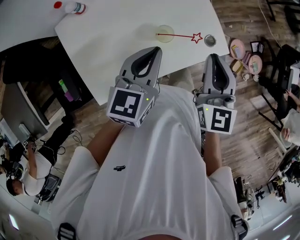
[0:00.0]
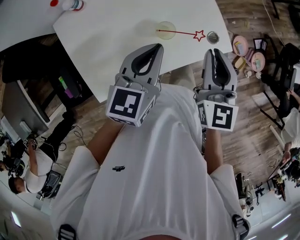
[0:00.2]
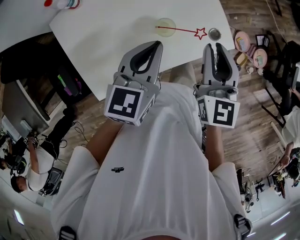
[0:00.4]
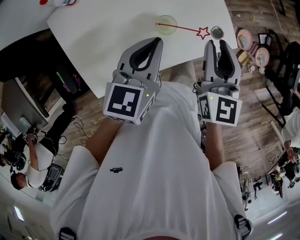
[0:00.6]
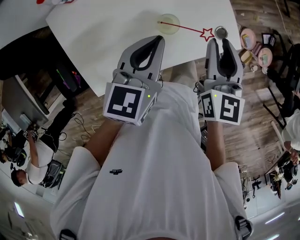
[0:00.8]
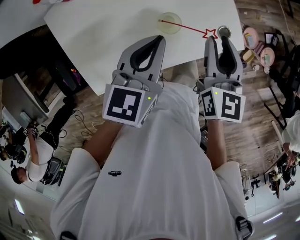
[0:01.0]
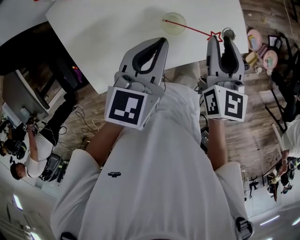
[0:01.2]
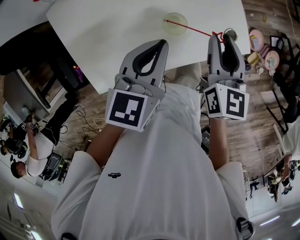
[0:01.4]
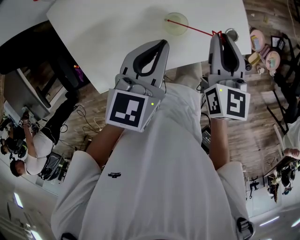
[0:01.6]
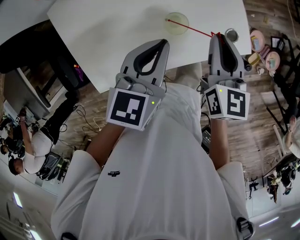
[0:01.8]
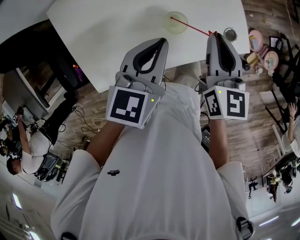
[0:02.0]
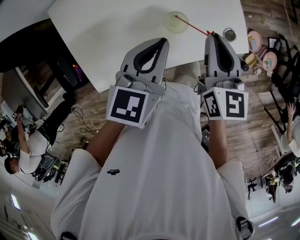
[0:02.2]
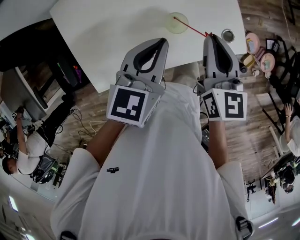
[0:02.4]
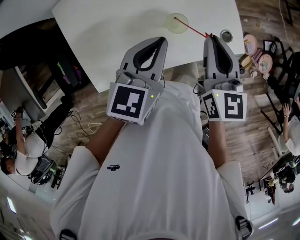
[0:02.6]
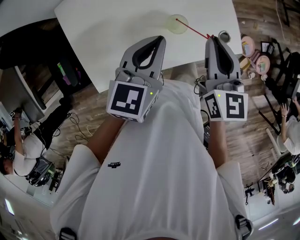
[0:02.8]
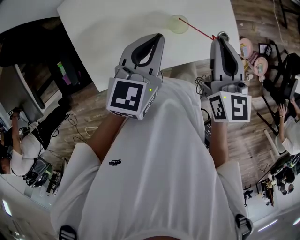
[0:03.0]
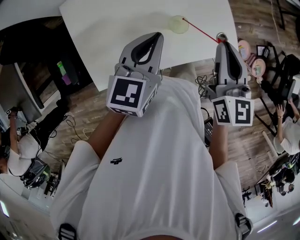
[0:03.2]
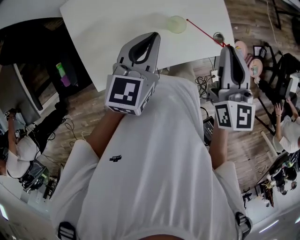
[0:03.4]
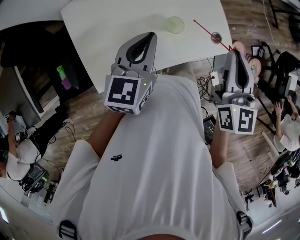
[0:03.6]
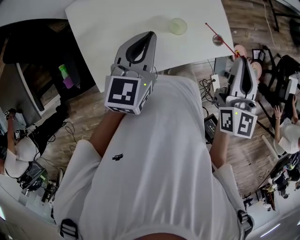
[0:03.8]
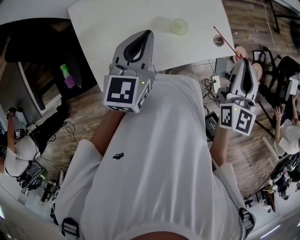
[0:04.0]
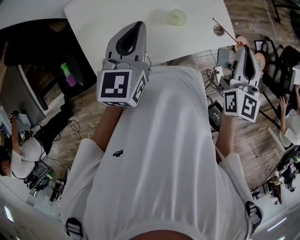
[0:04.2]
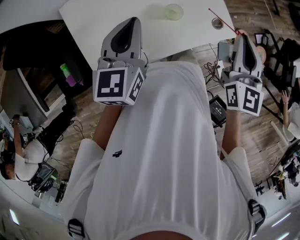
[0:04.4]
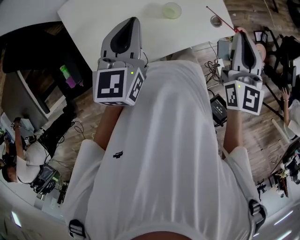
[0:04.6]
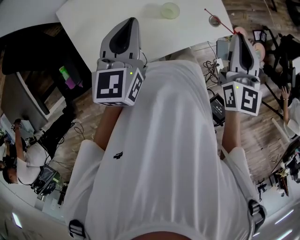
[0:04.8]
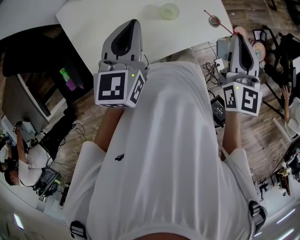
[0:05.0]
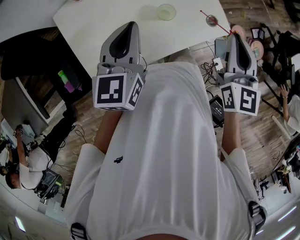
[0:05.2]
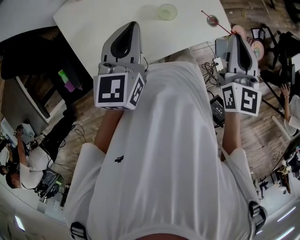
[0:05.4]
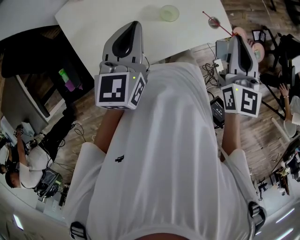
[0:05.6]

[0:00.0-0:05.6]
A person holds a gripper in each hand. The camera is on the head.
0:00.0 to 0:01.4: The left gripper heads downward, covering about 10 cm, while the right gripper is displaced downward and forward by some 15 cm, and opens its fingers.
0:01.4 to 0:02.8: The right gripper goes some 10 cm upward, and closes. Meanwhile the left gripper moves some 5 cm.
0:02.8 to 0:04.2: The left gripper moves upward and to the left, roughly 10 cm. Meanwhile the right gripper travels to the right, upward and backward by approximately 15 cm, and turns by about 20 degrees.
0:04.2 to 0:05.6: There are only small adjustments of the grippers.

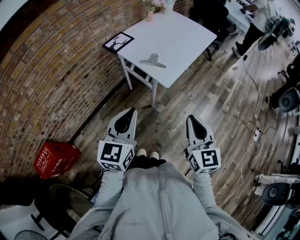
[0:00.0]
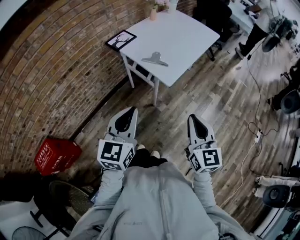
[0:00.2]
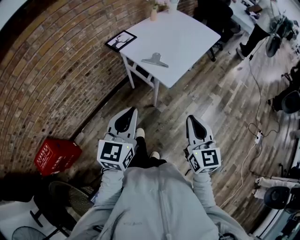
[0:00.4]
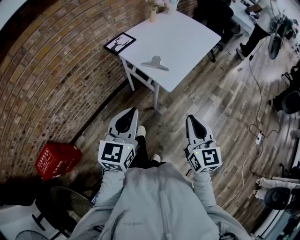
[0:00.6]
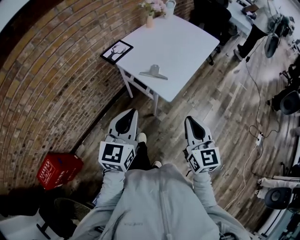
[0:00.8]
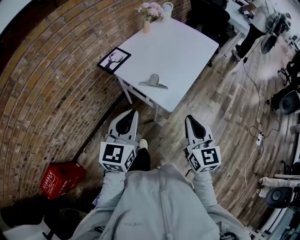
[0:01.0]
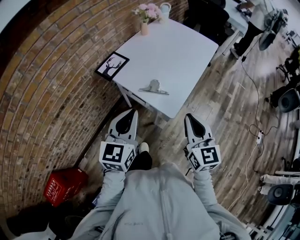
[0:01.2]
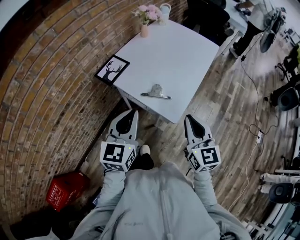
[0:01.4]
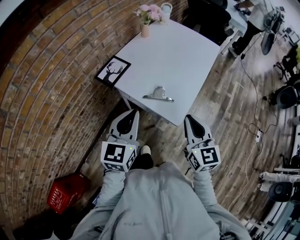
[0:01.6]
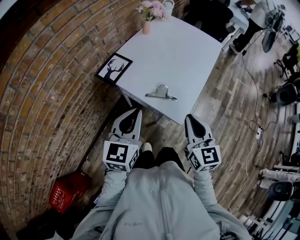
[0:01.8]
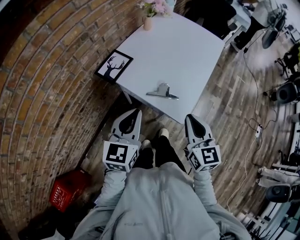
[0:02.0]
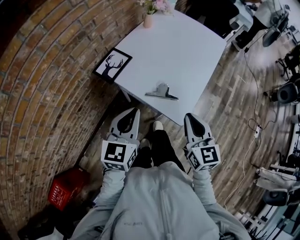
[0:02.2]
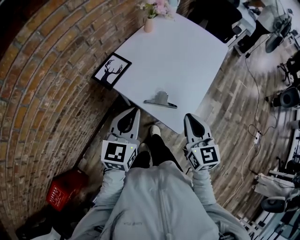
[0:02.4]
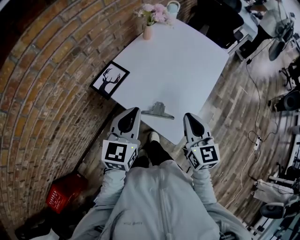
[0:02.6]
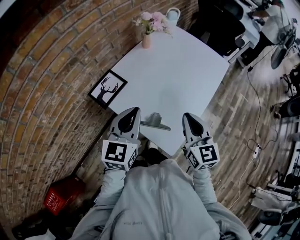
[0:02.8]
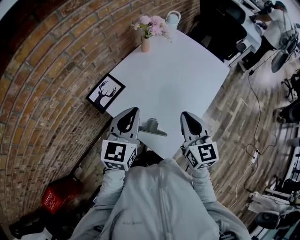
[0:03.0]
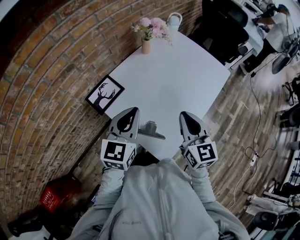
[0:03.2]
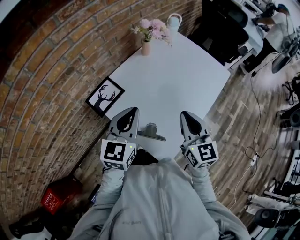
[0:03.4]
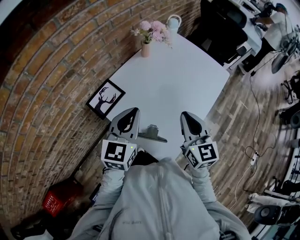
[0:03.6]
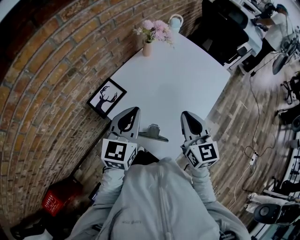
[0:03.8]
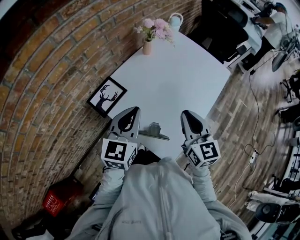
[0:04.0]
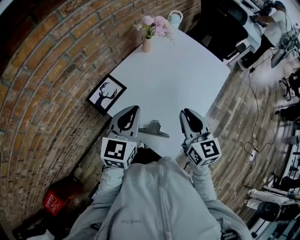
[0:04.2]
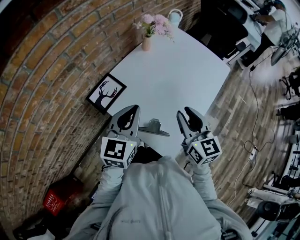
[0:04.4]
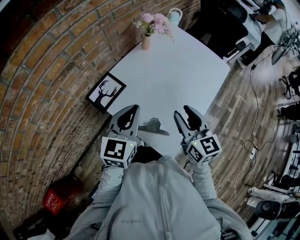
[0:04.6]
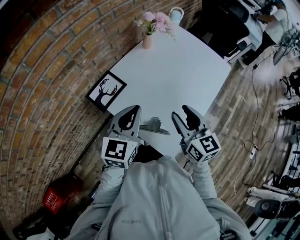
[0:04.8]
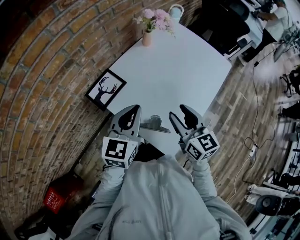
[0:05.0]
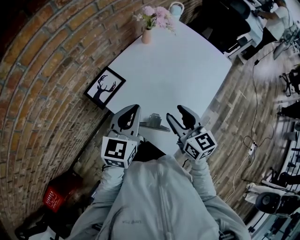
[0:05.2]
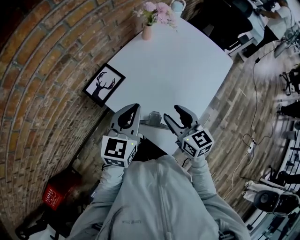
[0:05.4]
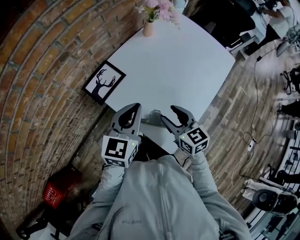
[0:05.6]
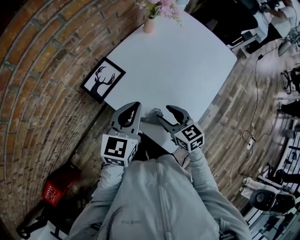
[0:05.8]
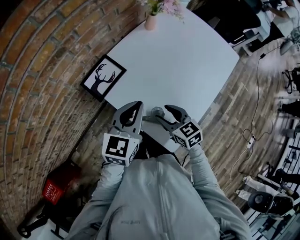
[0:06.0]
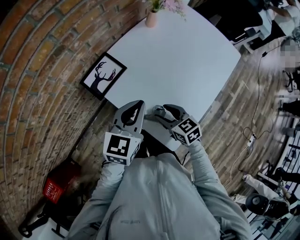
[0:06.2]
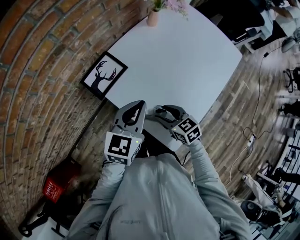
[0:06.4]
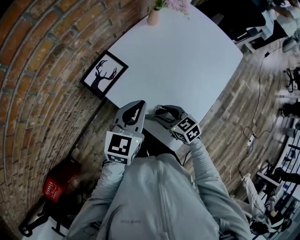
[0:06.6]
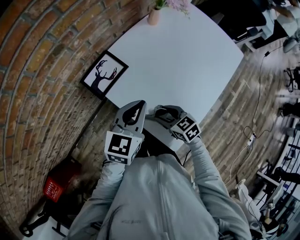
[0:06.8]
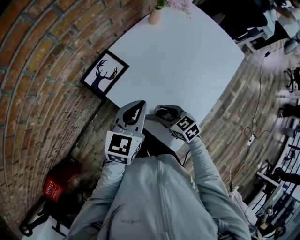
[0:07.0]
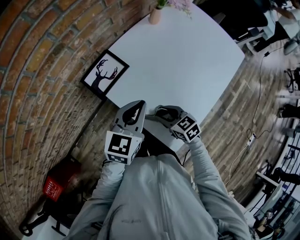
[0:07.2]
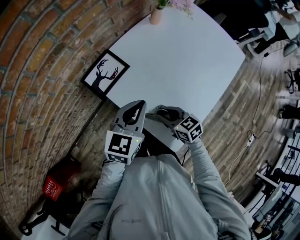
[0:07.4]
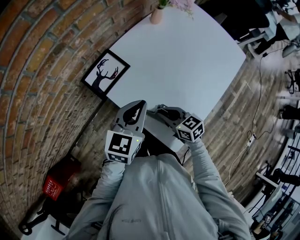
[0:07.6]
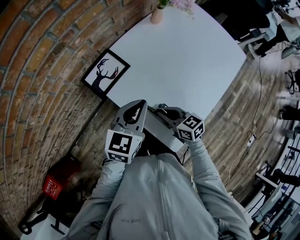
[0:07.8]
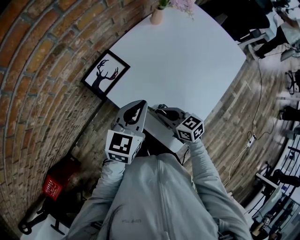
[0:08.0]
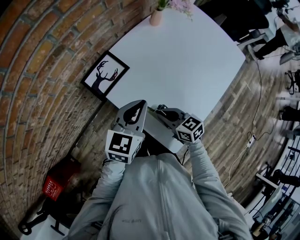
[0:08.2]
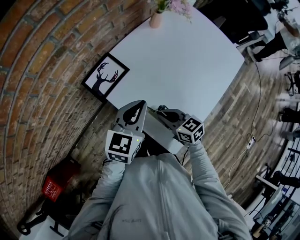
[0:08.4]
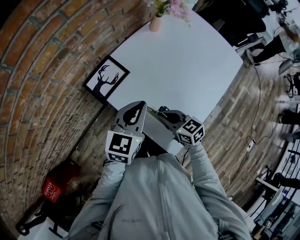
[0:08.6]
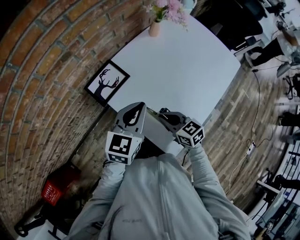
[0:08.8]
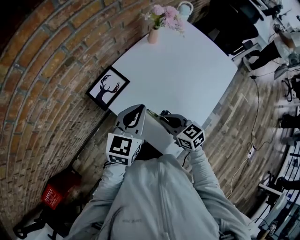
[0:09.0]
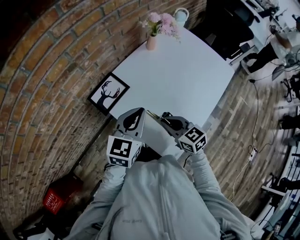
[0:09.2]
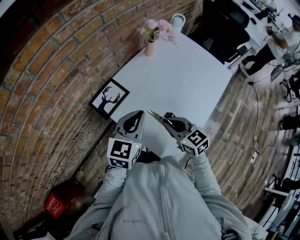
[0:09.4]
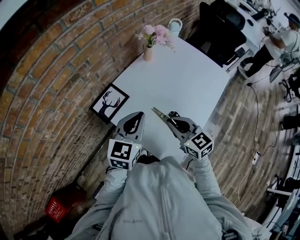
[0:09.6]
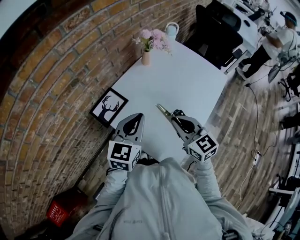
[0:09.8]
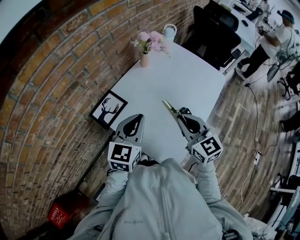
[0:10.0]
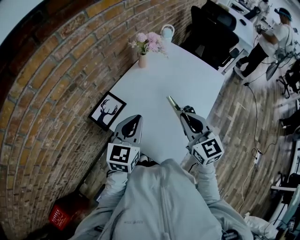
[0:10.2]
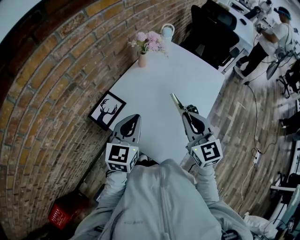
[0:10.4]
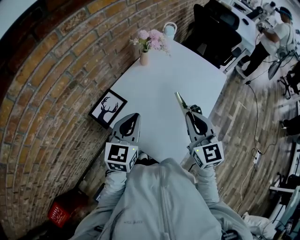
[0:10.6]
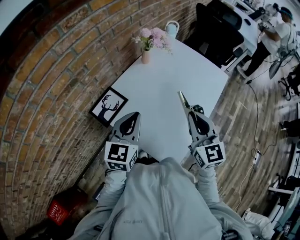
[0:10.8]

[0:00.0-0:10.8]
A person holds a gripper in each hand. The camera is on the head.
0:00.0 to 0:01.6: The grippers both shift forward by roughly 25 cm.
0:01.6 to 0:03.0: The two grippers go approximately 20 cm forward.
0:03.0 to 0:04.6: The right gripper opens.
0:04.6 to 0:06.2: The left gripper is displaced downward by approximately 5 cm. The right gripper moves downward and to the left, roughly 20 cm, and turns by about 40 degrees.
0:06.2 to 0:07.8: The right gripper closes its fingers.
0:07.8 to 0:09.2: Both grippers travel together upward, some 5 cm.
0:09.2 to 0:10.8: The right gripper travels upward and to the right by roughly 20 cm, and turns by some 40 degrees.

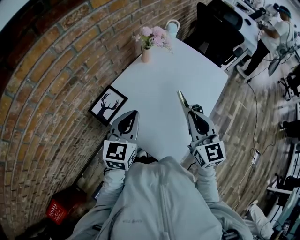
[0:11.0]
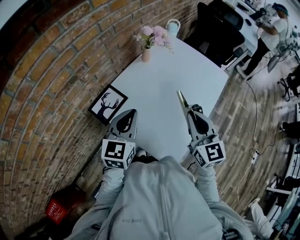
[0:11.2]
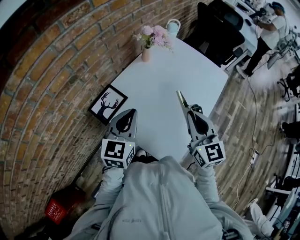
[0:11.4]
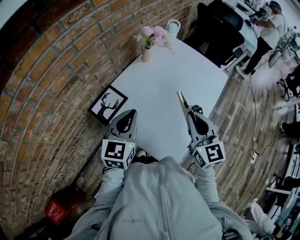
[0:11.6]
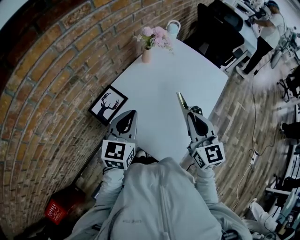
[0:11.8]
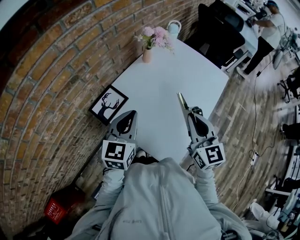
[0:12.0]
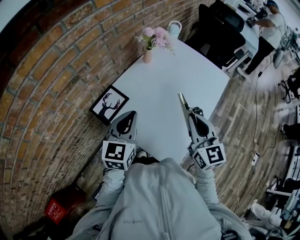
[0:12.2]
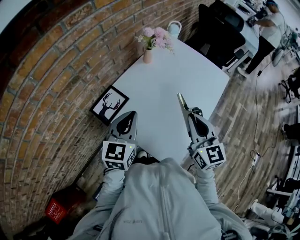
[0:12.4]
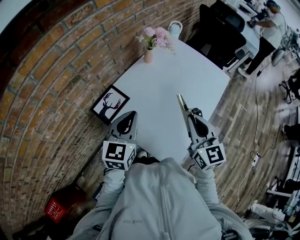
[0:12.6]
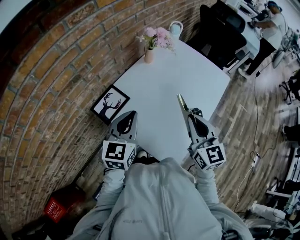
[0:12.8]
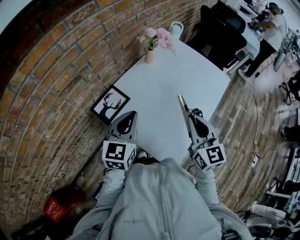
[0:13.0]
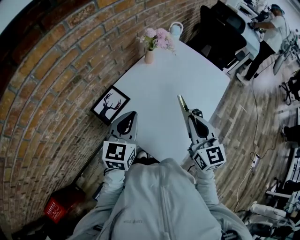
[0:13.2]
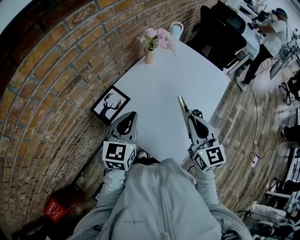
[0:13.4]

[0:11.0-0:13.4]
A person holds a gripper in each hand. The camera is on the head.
0:11.0 to 0:12.2: Neither gripper changes place.
0:12.2 to 0:13.4: Neither gripper changes place.

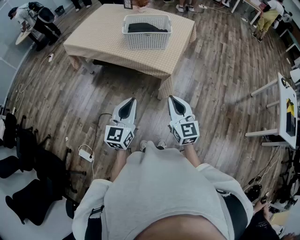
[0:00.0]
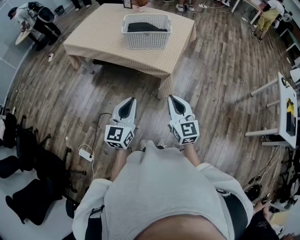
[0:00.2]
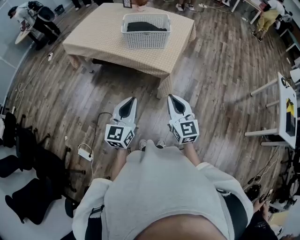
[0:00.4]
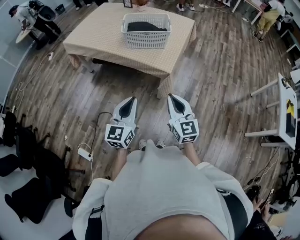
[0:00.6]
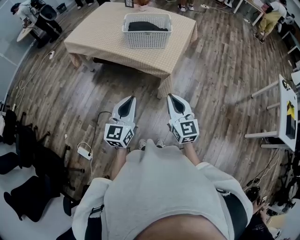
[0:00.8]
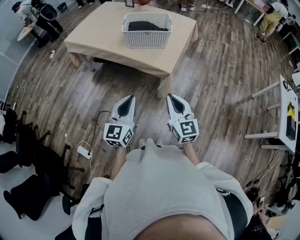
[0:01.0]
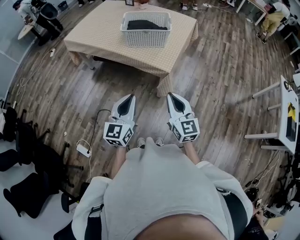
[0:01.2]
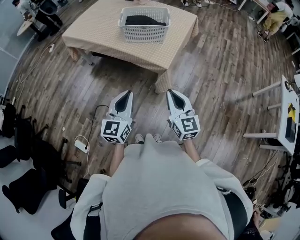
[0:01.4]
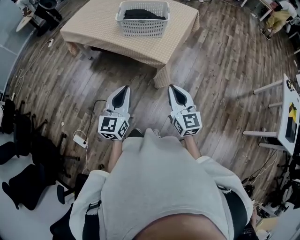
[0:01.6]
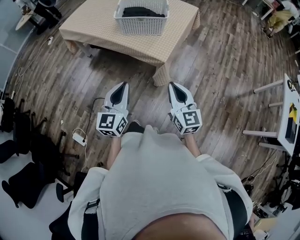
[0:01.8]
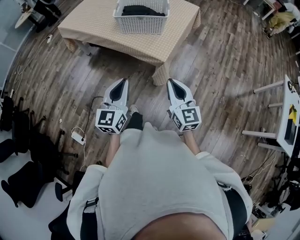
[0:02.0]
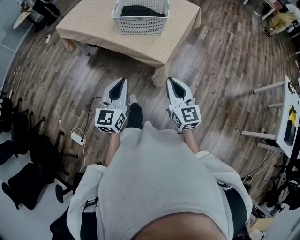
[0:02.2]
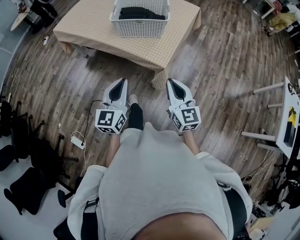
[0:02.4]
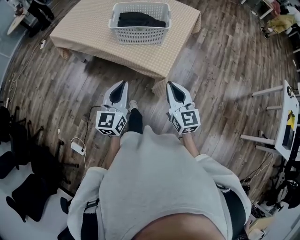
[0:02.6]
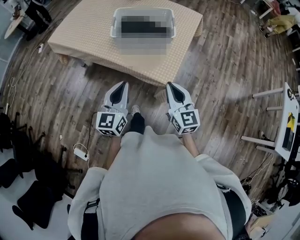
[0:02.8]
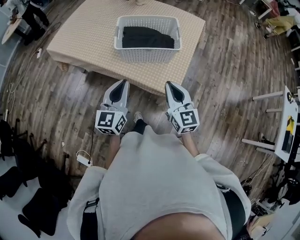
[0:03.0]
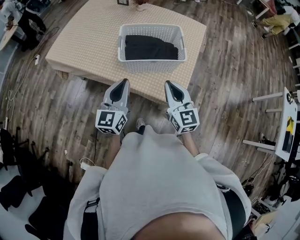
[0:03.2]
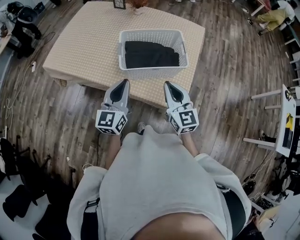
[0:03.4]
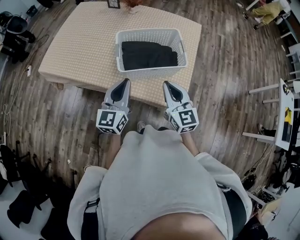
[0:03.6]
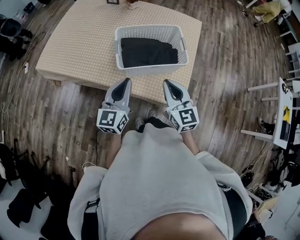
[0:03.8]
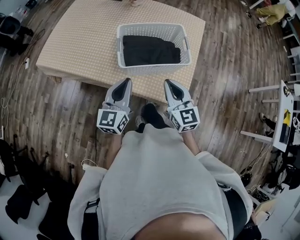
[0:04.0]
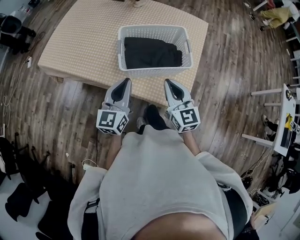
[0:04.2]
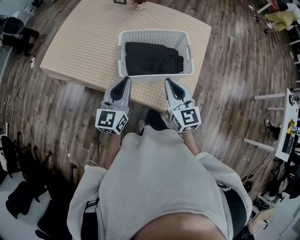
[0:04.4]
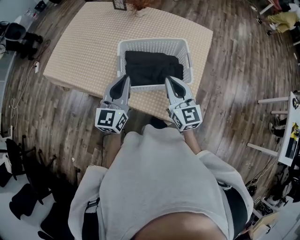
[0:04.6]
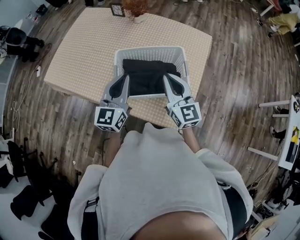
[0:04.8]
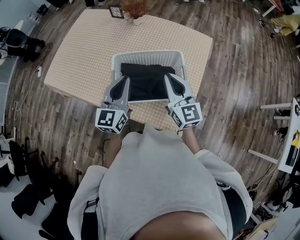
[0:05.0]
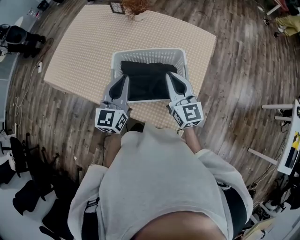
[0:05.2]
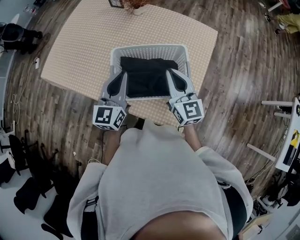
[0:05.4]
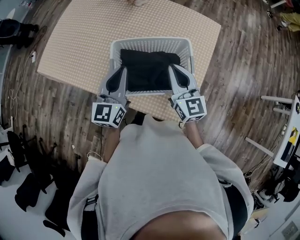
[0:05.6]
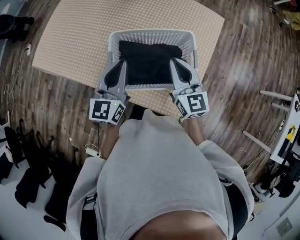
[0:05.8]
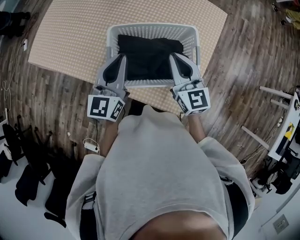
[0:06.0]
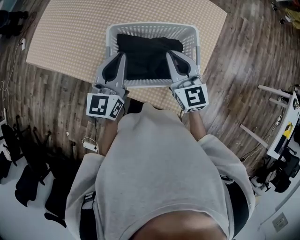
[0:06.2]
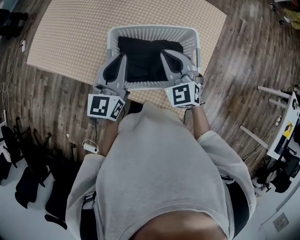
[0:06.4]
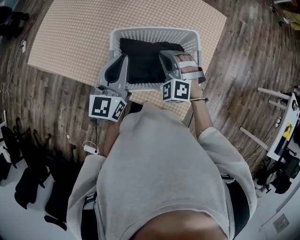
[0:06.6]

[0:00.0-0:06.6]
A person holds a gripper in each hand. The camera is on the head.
0:00.0 to 0:01.6: The right gripper is displaced to the right by approximately 5 cm. The left gripper ends up some 5 cm from where it was.
0:01.6 to 0:03.2: The grippers both shift forward by approximately 35 cm.
0:03.2 to 0:05.0: The two grippers go about 20 cm forward.
0:05.0 to 0:06.6: The left gripper is displaced forward by roughly 5 cm, while the right gripper heads downward, forward and to the left, covering roughly 15 cm, and rolls counterclockwise, seen from behind, by roughly 60 degrees.
